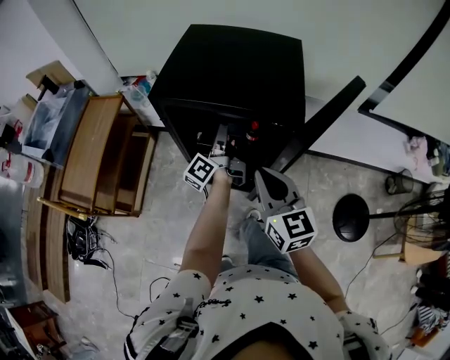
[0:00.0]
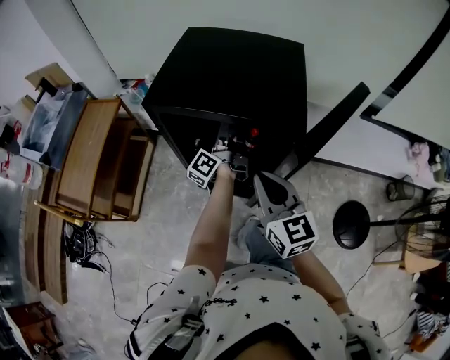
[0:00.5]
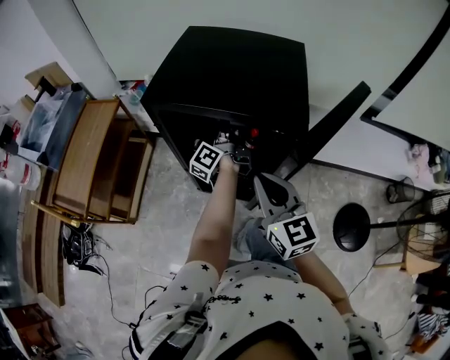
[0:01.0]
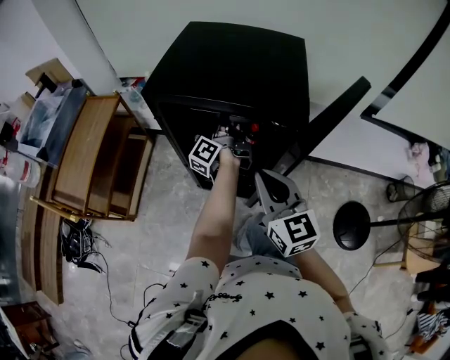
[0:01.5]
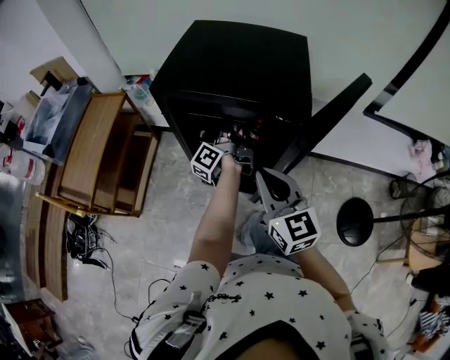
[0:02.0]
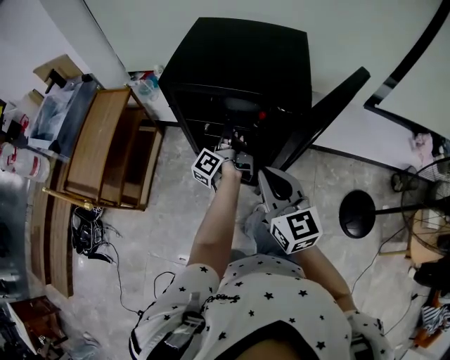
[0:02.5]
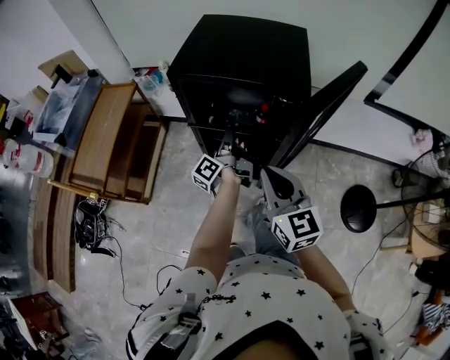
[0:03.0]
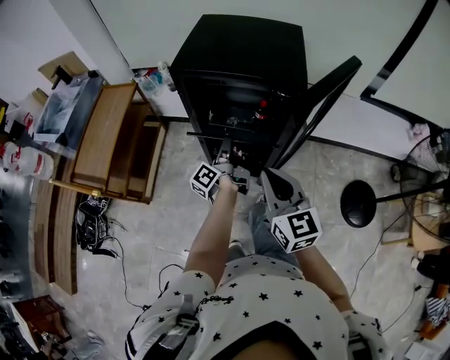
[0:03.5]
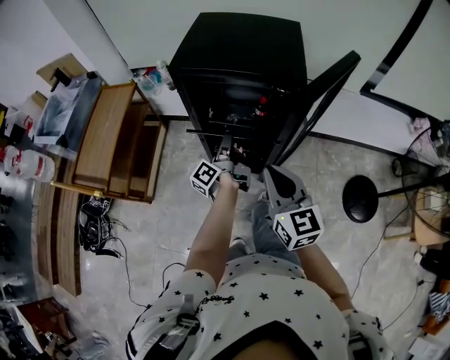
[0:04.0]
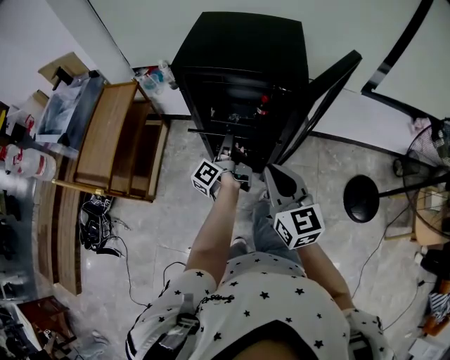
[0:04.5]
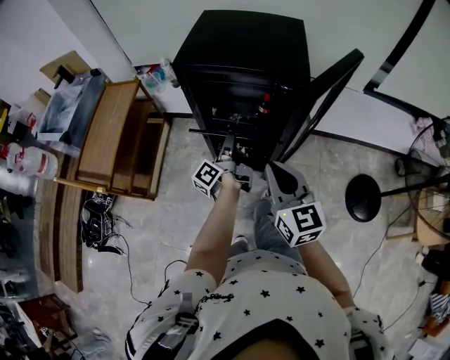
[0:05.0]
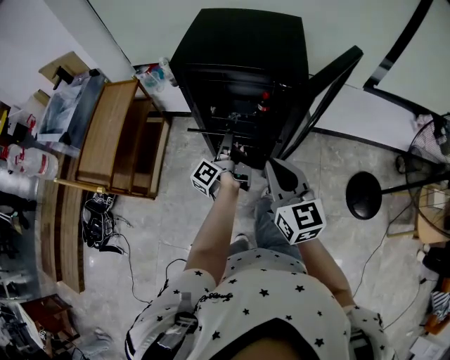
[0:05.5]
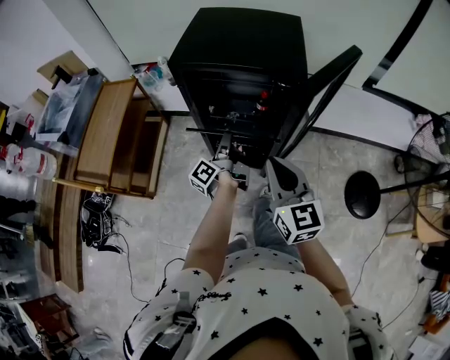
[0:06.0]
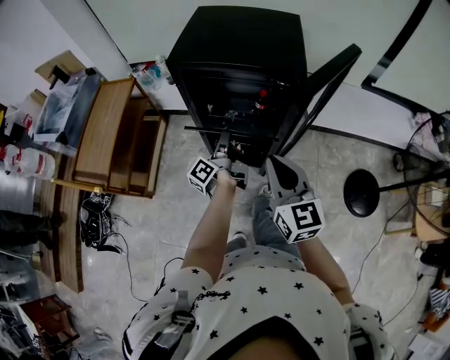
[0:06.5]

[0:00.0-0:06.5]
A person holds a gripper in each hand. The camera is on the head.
0:00.0 to 0:02.0: The left gripper closes up.
0:02.0 to 0:04.5: The grippers both shift backward by approximately 15 cm.
0:04.5 to 0:06.5: There are only small adjustments of the grippers.

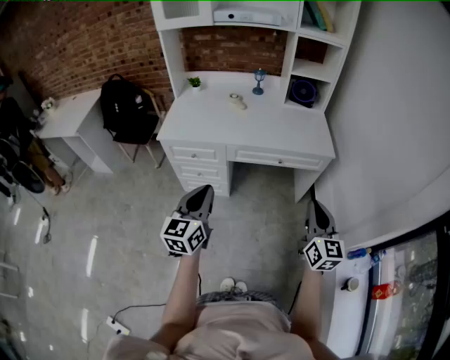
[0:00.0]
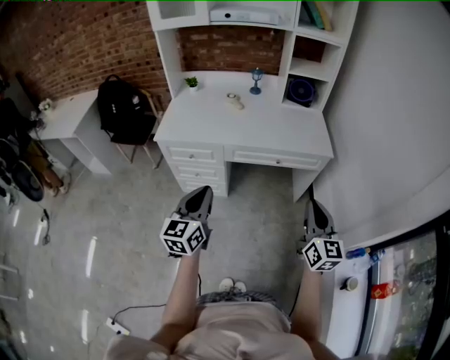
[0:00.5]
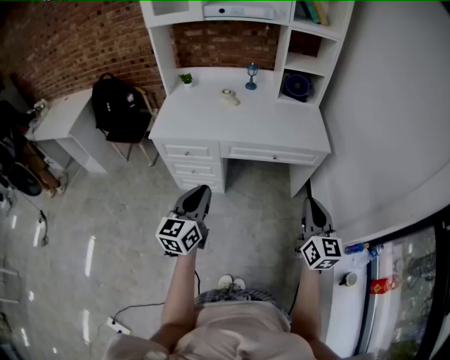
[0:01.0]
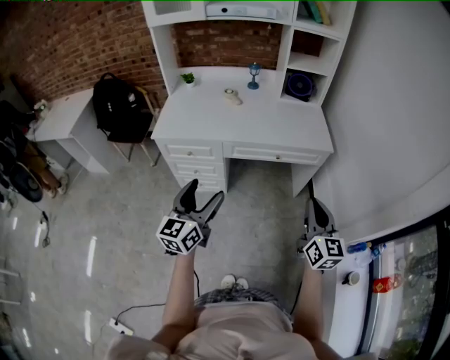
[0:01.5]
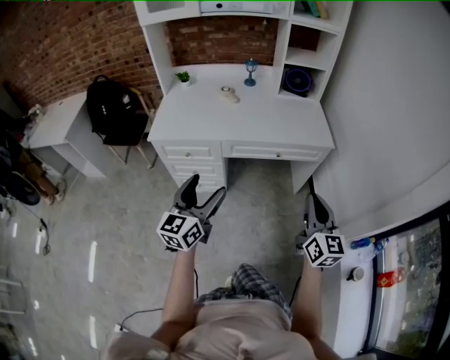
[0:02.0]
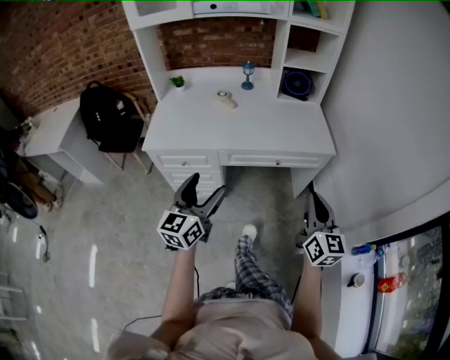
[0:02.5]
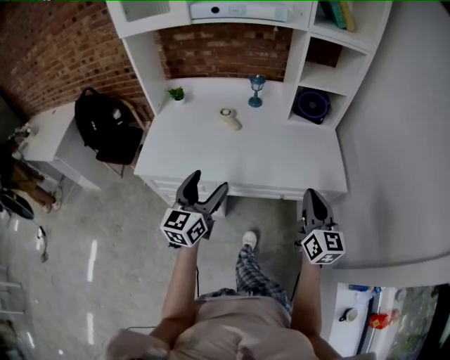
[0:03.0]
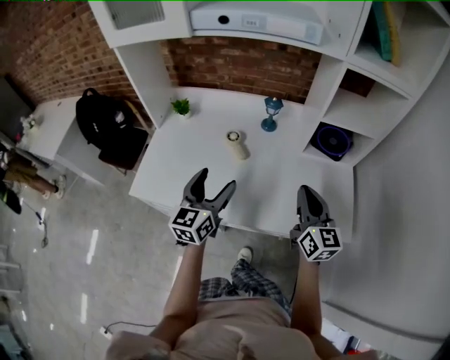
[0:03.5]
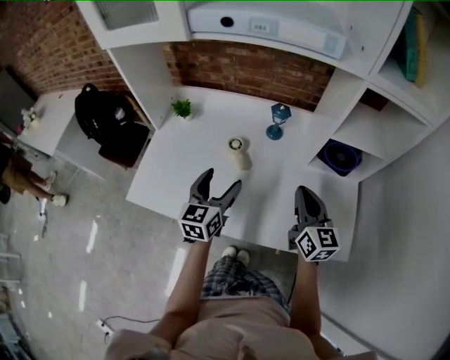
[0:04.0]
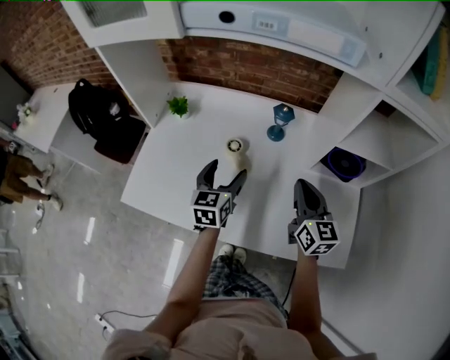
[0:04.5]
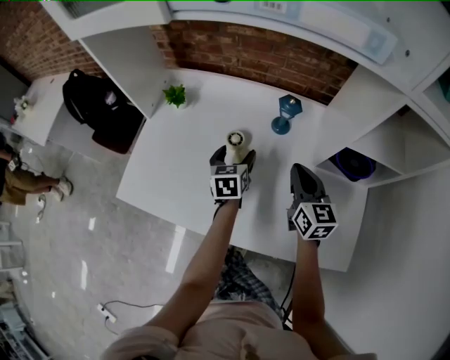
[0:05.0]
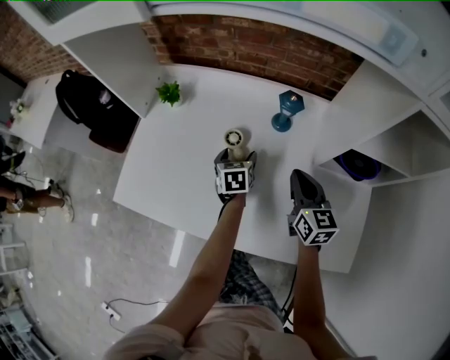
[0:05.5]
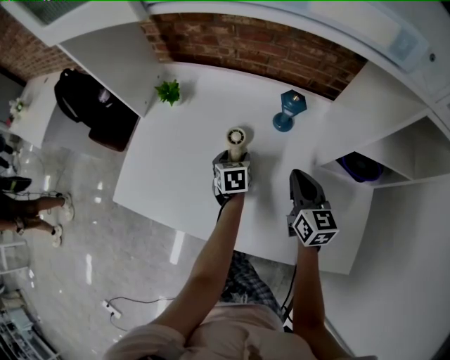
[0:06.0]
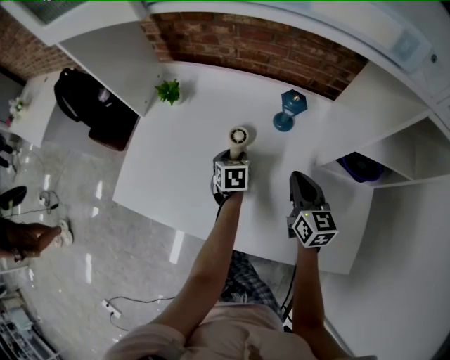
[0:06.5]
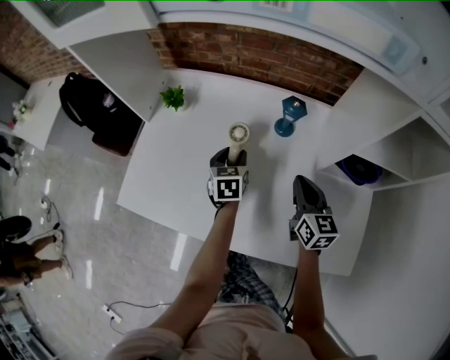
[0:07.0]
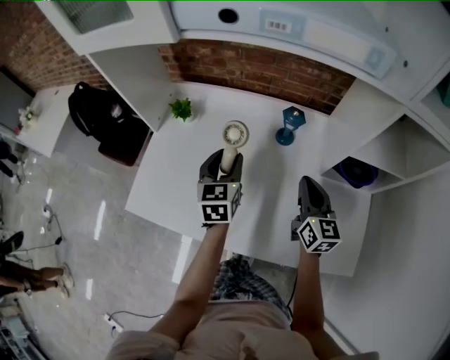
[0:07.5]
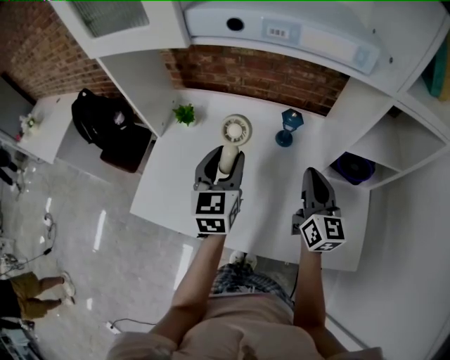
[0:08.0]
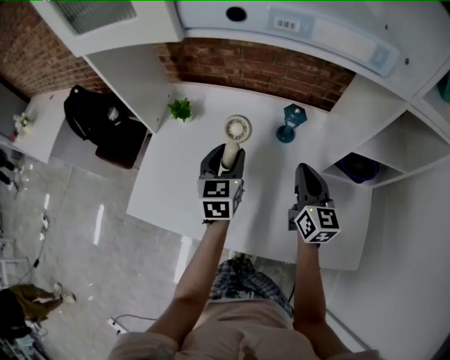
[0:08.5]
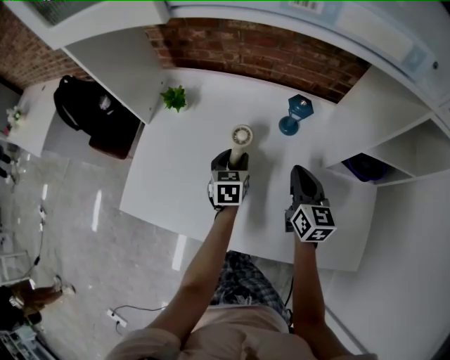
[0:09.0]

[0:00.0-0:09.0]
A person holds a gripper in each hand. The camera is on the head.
0:00.0 to 0:02.0: The left gripper opens up.
0:02.0 to 0:04.5: Both grippers are carried forward, about 70 cm. The left gripper swivels approximately 30 degrees; the right gripper swivels roughly 20 degrees.
0:04.5 to 0:07.0: Both grippers travel together downward and forward, about 15 cm. The left gripper rotates approximately 20 degrees, and closes.
0:07.0 to 0:09.0: The left gripper goes upward and returns, about 20 cm each way. Meanwhile the right gripper moves roughly 15 cm upward and comes back.

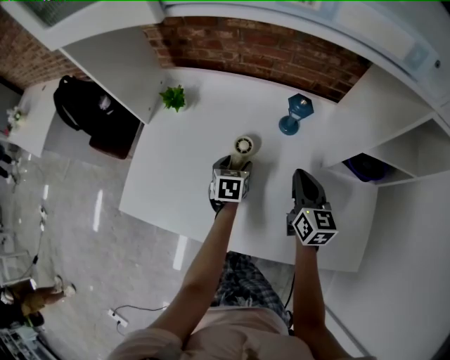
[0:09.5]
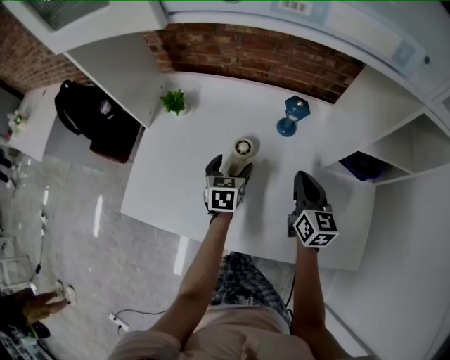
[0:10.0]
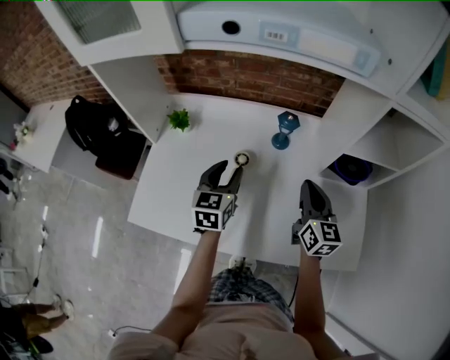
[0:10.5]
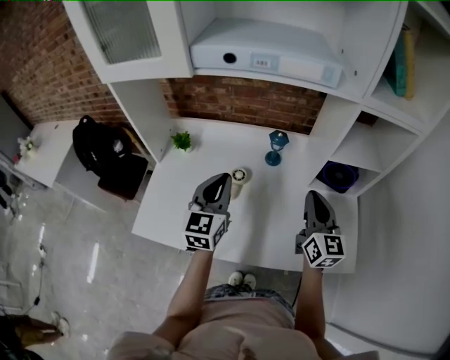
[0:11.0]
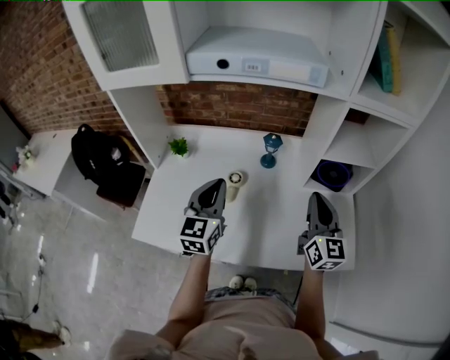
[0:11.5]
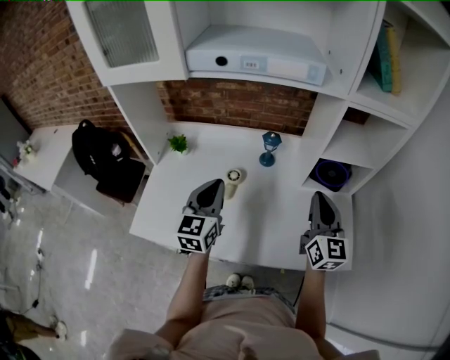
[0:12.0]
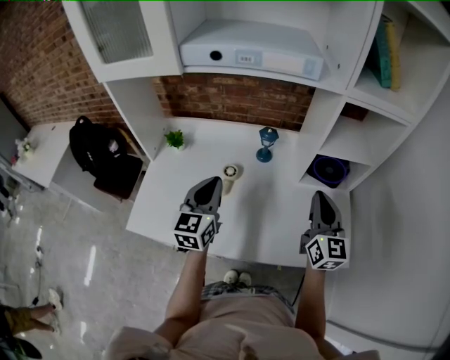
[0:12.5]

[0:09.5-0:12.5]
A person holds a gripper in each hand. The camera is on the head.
0:09.5 to 0:11.0: The right gripper travels upward and backward by some 20 cm, and swivels approximately 20 degrees; the left gripper heads upward, covering approximately 30 cm, points its fingers approximately 40 degrees further upward, and closes up.
0:11.0 to 0:12.5: The right gripper is displaced to the right by roughly 5 cm.

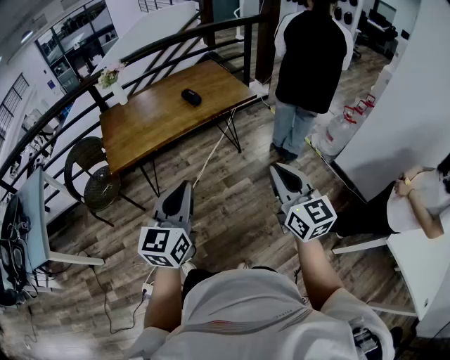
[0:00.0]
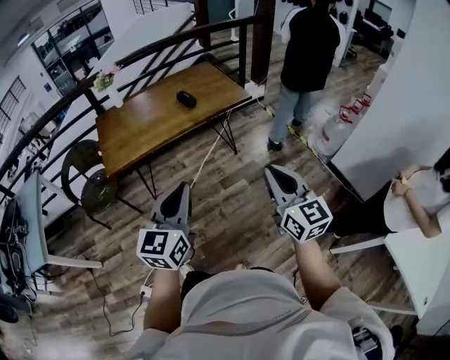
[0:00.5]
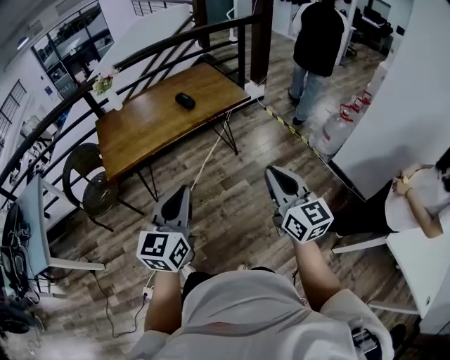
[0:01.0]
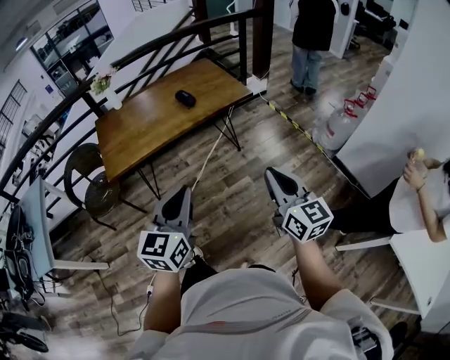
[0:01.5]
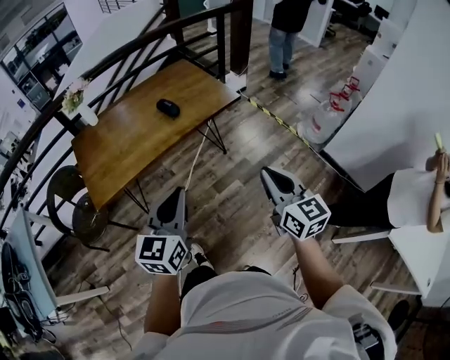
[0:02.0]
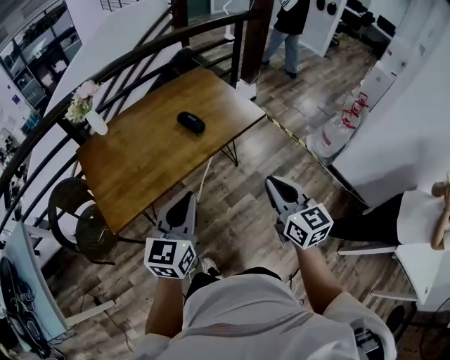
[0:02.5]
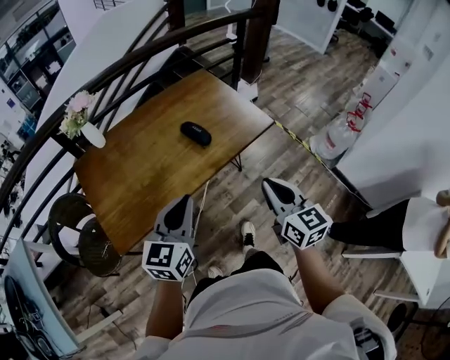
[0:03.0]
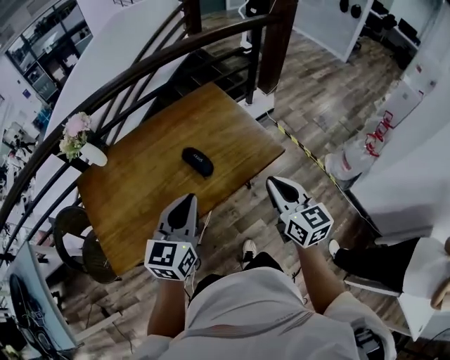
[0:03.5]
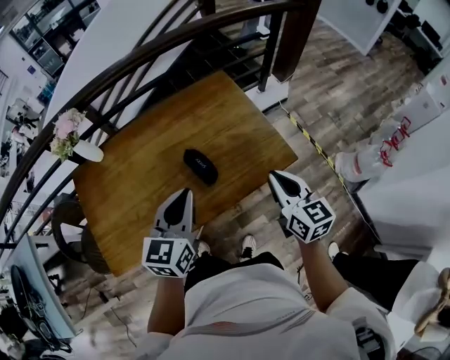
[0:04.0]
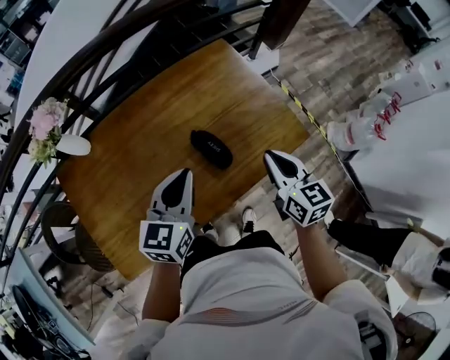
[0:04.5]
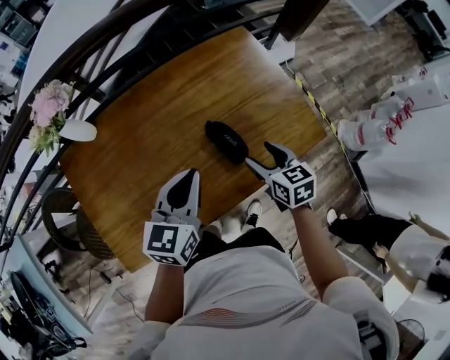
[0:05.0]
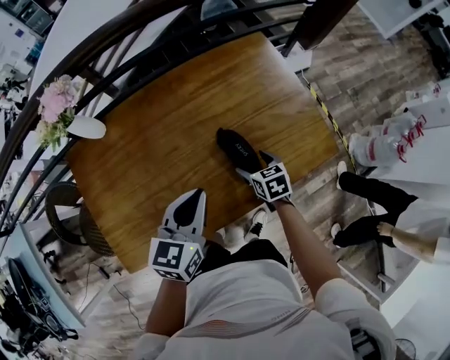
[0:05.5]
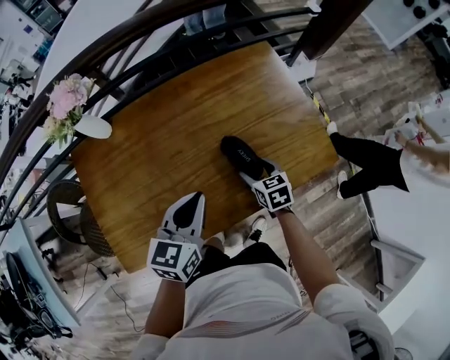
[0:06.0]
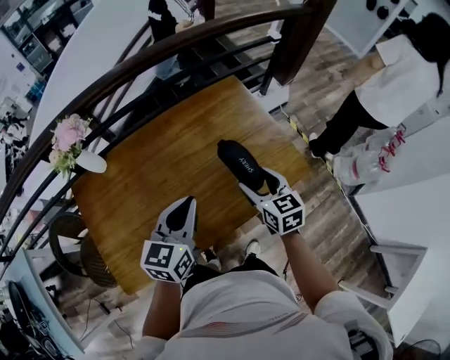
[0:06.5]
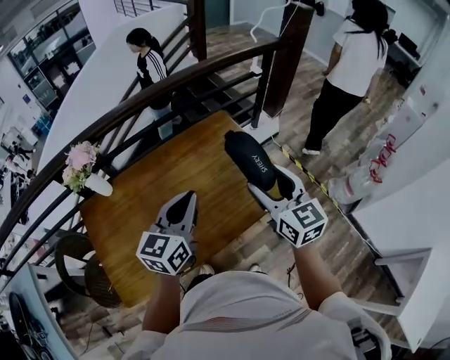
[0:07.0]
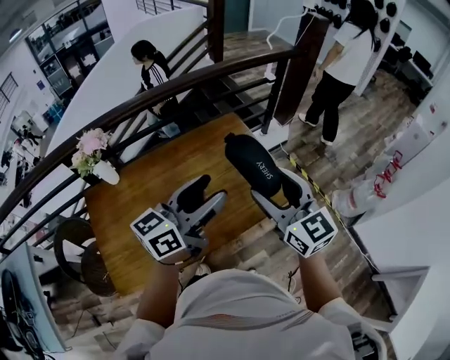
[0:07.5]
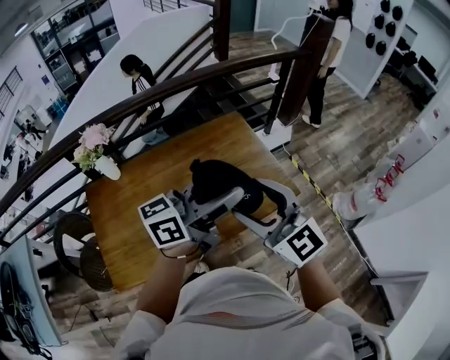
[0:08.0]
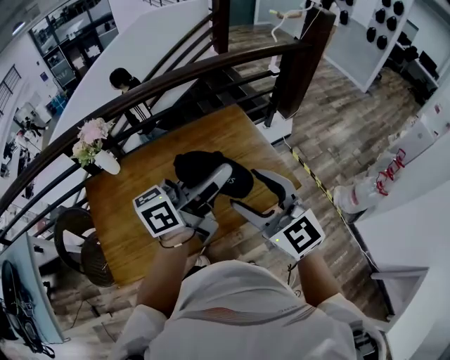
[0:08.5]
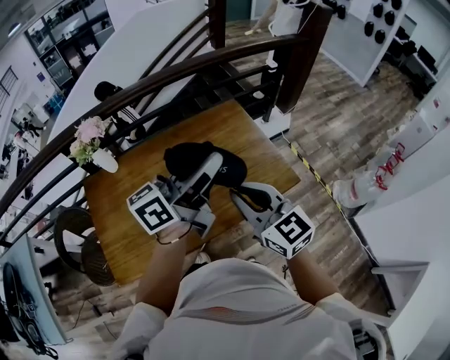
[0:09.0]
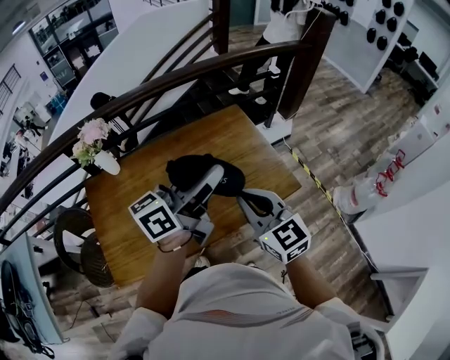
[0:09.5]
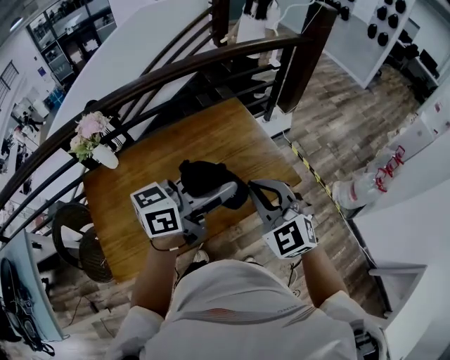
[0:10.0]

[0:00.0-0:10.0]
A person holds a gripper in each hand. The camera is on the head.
0:00.0 to 0:02.0: The grippers both shift forward by roughly 15 cm.
0:02.0 to 0:04.0: Both grippers are carried forward, roughly 50 cm.
0:04.0 to 0:06.0: The right gripper shifts about 30 cm downward and to the left, tilts its fingers approximately 30 degrees downward, and opens its fingers; the left gripper shifts approximately 15 cm to the left and downward.
0:06.0 to 0:08.0: The right gripper heads upward, covering about 40 cm, and tilts its fingers roughly 50 degrees upward, while the left gripper is displaced upward and to the right by approximately 30 cm, tilts its fingers about 40 degrees upward, and opens up.
0:08.0 to 0:10.0: The right gripper shifts some 5 cm downward, rotates about 30 degrees, and closes its fingers.
